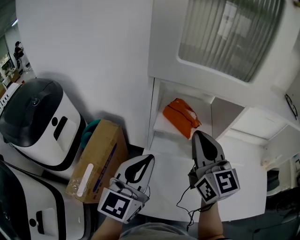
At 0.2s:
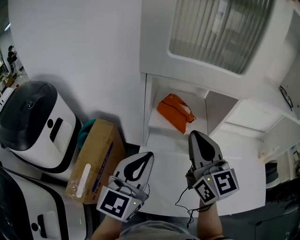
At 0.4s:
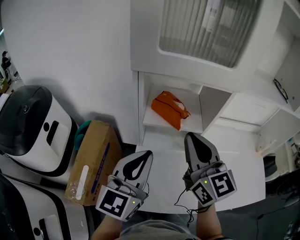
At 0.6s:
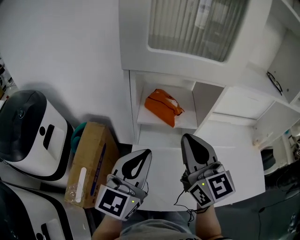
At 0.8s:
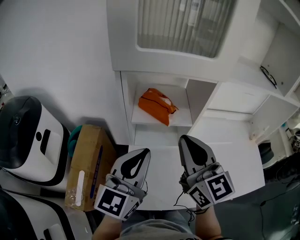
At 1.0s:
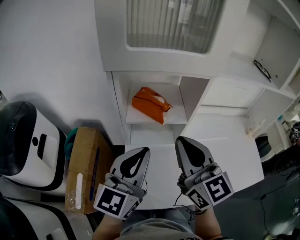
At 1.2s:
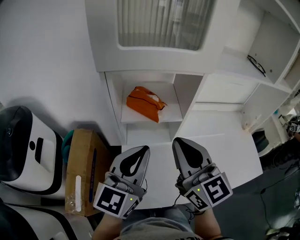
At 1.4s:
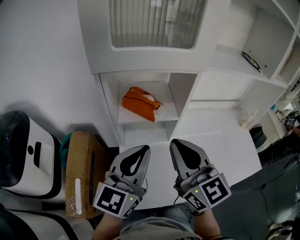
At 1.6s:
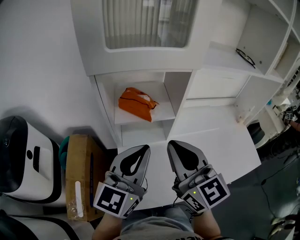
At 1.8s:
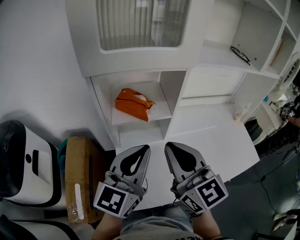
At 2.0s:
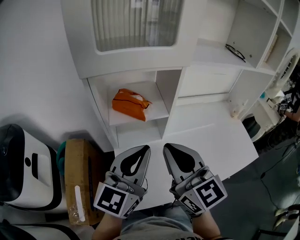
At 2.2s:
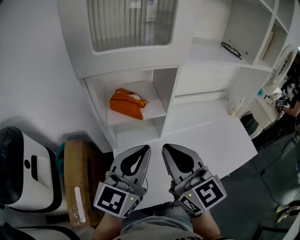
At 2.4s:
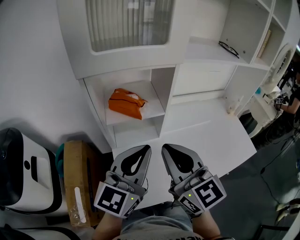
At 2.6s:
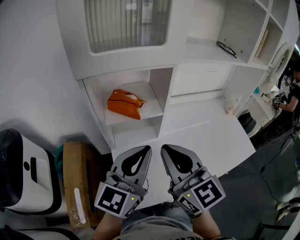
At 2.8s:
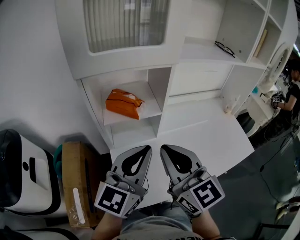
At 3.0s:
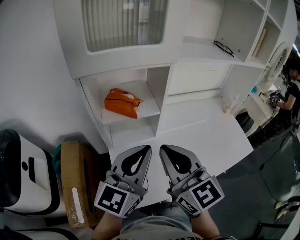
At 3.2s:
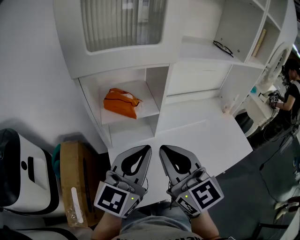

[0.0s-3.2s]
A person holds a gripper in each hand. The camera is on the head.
0.0s to 1.6s: The left gripper goes about 10 cm to the right, and swivels some 20 degrees. Meanwhile the right gripper shifts about 10 cm backward.
1.6s to 3.2s: The left gripper shifts by roughly 5 cm.

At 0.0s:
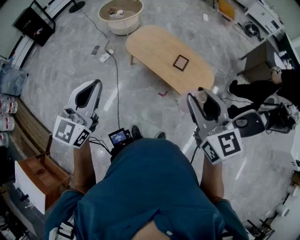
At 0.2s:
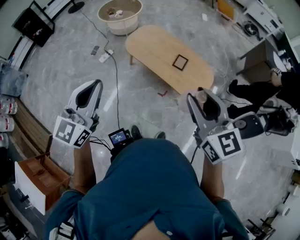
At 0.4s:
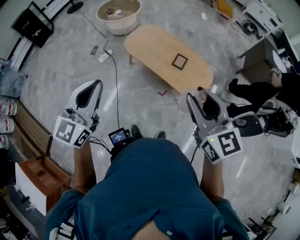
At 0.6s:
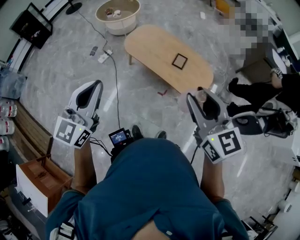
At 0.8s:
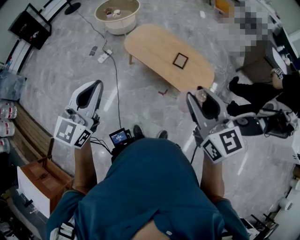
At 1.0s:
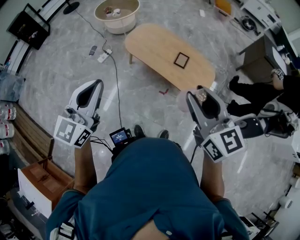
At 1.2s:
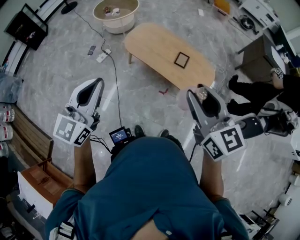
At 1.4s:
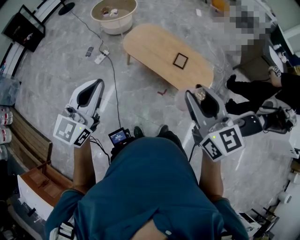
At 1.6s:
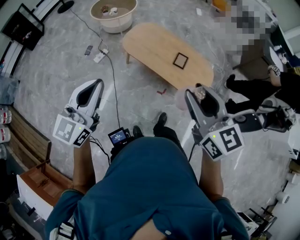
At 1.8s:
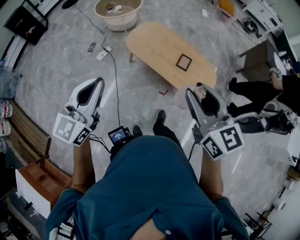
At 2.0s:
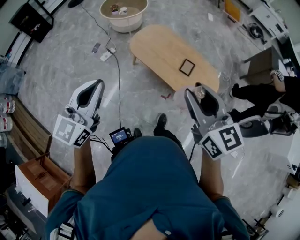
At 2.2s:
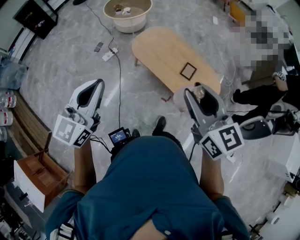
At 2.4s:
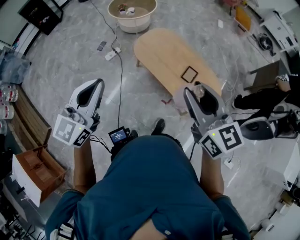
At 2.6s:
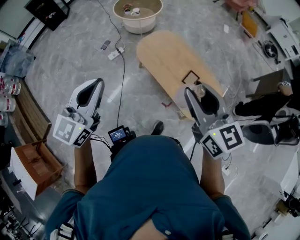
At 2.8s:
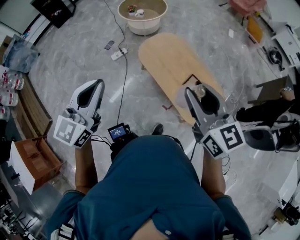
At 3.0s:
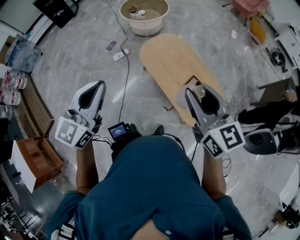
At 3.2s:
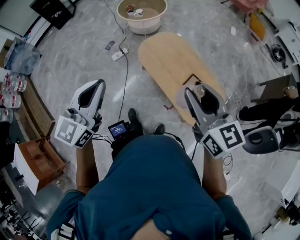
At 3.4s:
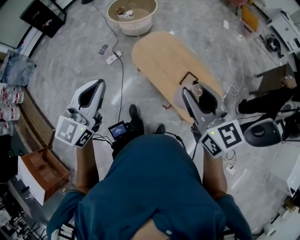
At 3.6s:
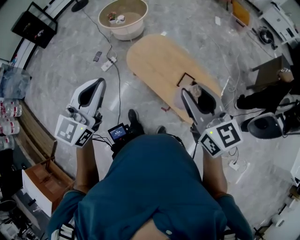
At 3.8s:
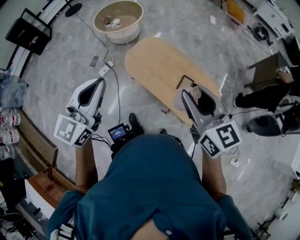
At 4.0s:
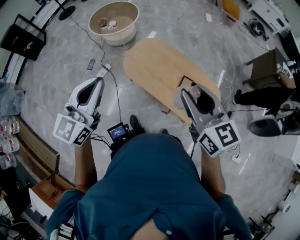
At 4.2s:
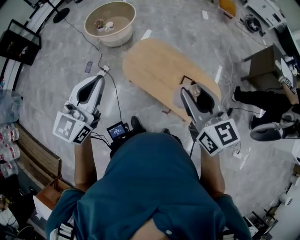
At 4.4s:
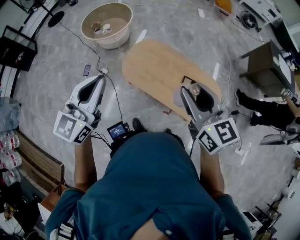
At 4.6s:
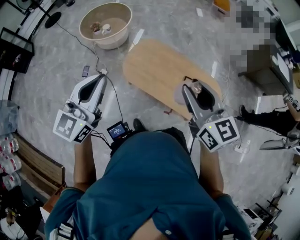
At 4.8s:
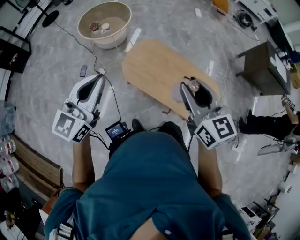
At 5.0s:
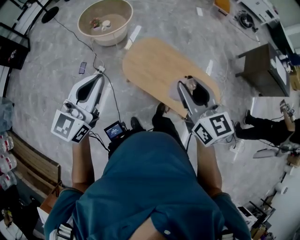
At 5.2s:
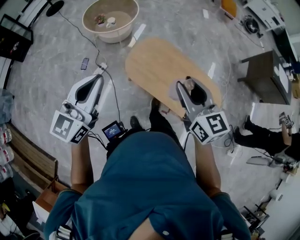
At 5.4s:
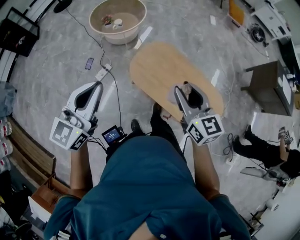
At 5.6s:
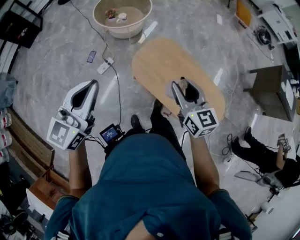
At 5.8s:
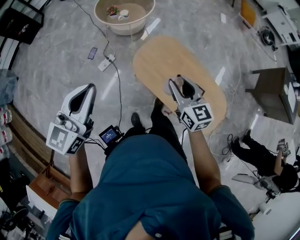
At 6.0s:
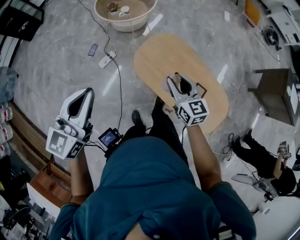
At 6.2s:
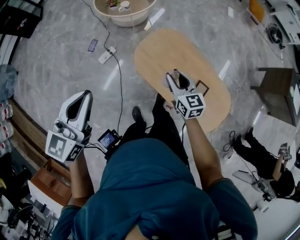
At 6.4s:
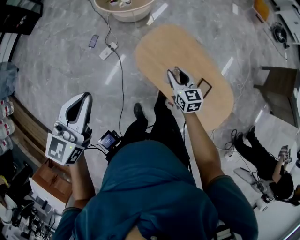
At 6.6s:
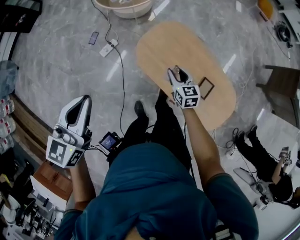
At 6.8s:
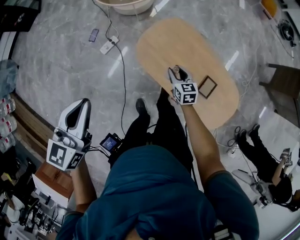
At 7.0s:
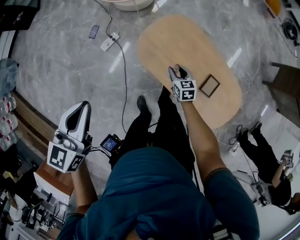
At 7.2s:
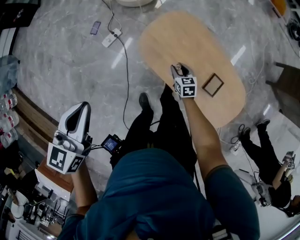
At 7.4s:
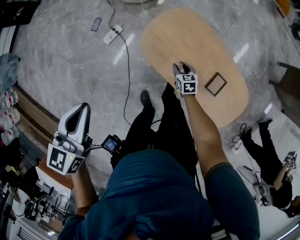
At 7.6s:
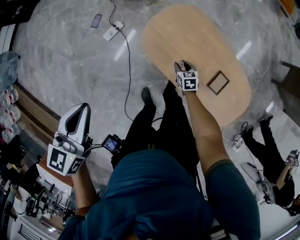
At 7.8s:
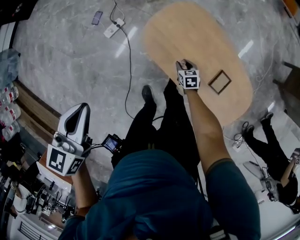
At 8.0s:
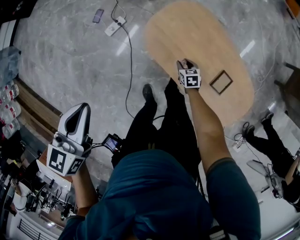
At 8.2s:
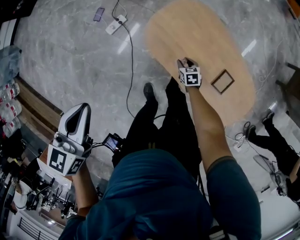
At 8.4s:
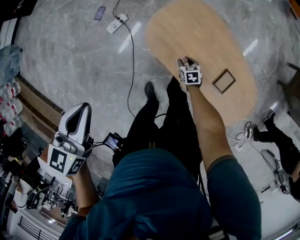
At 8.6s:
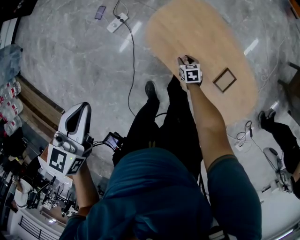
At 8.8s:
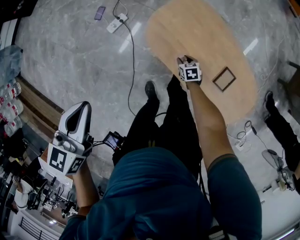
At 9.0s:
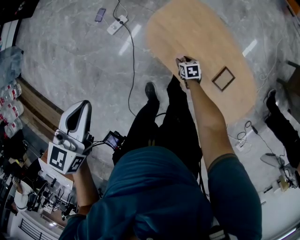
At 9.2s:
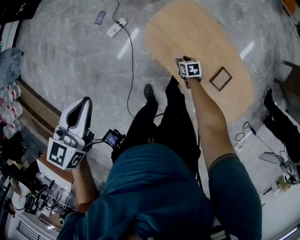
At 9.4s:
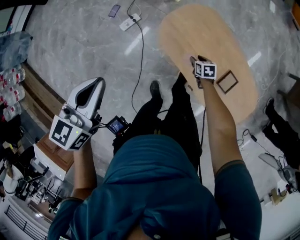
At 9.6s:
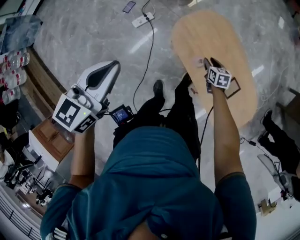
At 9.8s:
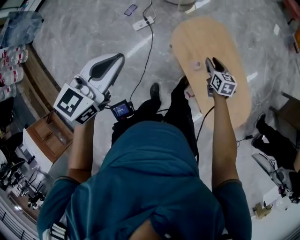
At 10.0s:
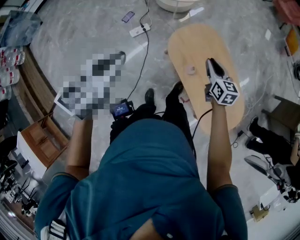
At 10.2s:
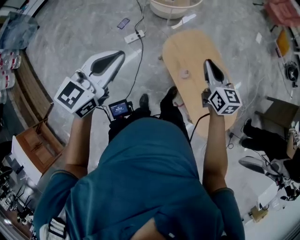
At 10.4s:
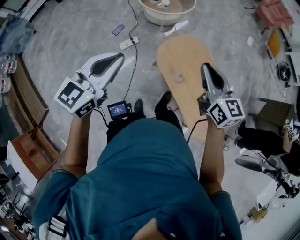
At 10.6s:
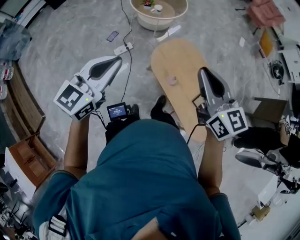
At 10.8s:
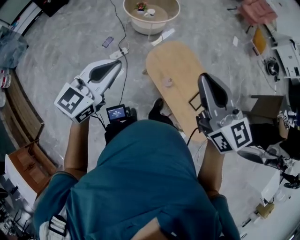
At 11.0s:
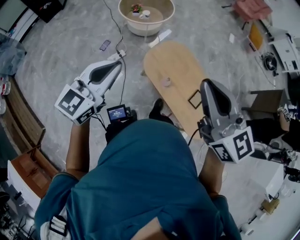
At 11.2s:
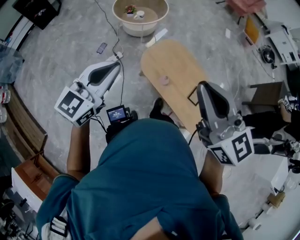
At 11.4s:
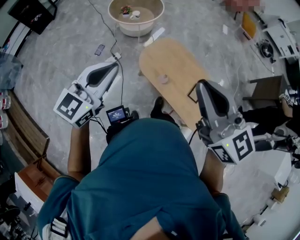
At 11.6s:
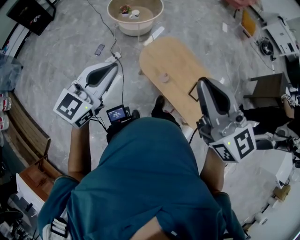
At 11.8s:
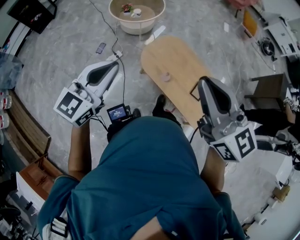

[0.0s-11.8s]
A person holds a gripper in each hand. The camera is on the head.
0.0s to 1.4s: The two grippers go about 5 cm to the left.
1.4s to 3.0s: The right gripper heads forward and to the right, covering approximately 25 cm. The left gripper heads forward and to the right, covering some 15 cm.
3.0s to 4.4s: The left gripper heads forward, covering about 25 cm, and changes its angle by some 20 degrees, while the right gripper heads forward and to the left, covering about 15 cm, and changes its angle by about 20 degrees.
4.4s to 6.0s: The right gripper heads downward, forward and to the left, covering some 30 cm, while the left gripper travels to the left and downward by about 10 cm.
6.0s to 7.4s: The left gripper shifts approximately 15 cm downward, and changes its angle by approximately 20 degrees. Meanwhile the right gripper travels downward by about 40 cm, and points its fingers approximately 30 degrees further downward.
7.4s to 8.8s: The right gripper heads downward, covering about 10 cm.
8.8s to 10.4s: The right gripper shifts approximately 60 cm upward, points its fingers about 50 degrees further upward, and closes its fingers. Meanwhile the left gripper moves upward and backward, roughly 15 cm, and turns by approximately 30 degrees.
10.4s to 11.8s: The left gripper changes place by approximately 5 cm; the right gripper goes approximately 20 cm upward and backward.

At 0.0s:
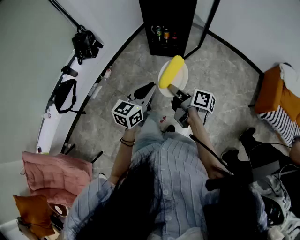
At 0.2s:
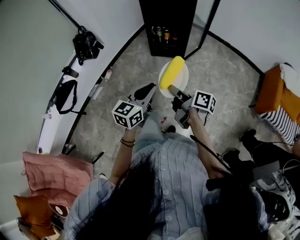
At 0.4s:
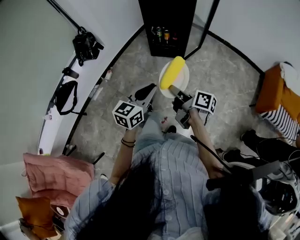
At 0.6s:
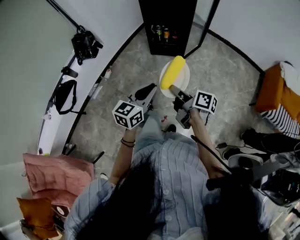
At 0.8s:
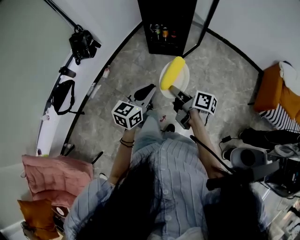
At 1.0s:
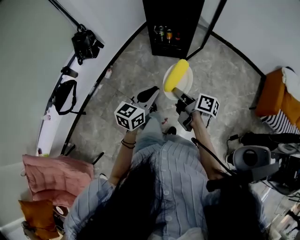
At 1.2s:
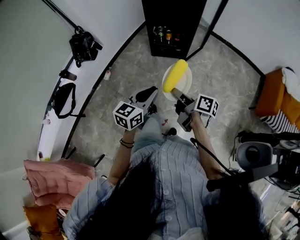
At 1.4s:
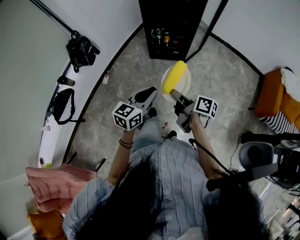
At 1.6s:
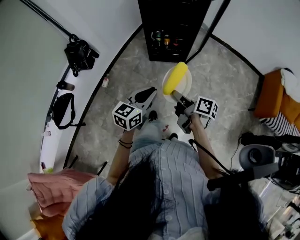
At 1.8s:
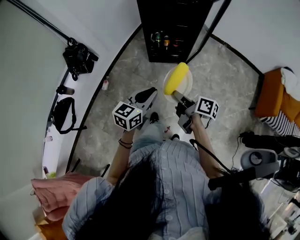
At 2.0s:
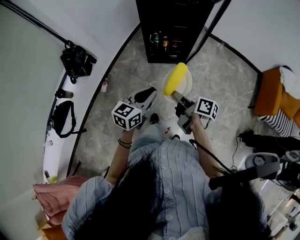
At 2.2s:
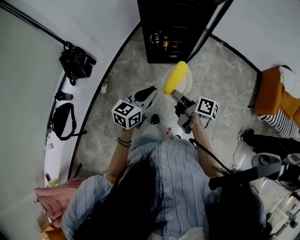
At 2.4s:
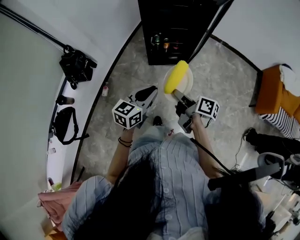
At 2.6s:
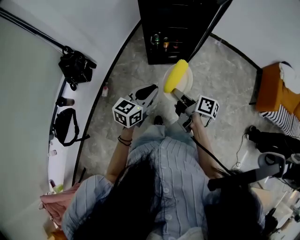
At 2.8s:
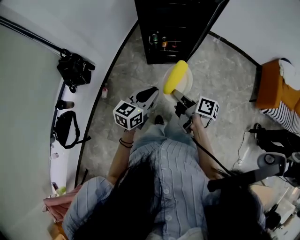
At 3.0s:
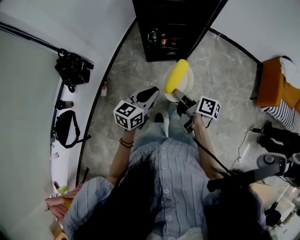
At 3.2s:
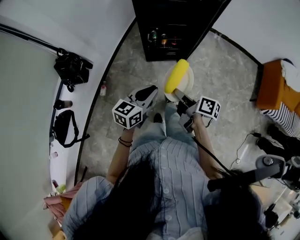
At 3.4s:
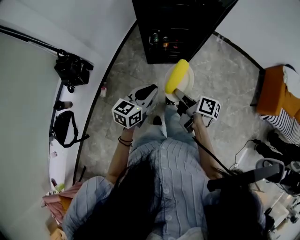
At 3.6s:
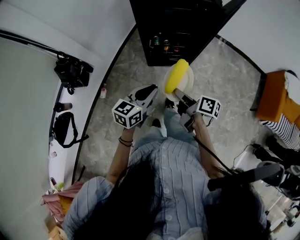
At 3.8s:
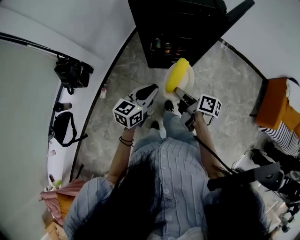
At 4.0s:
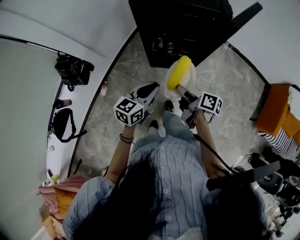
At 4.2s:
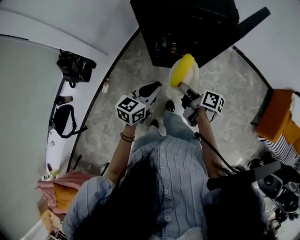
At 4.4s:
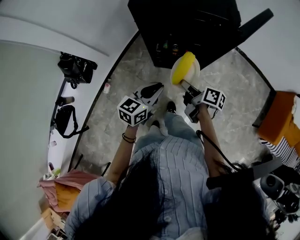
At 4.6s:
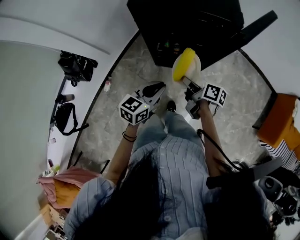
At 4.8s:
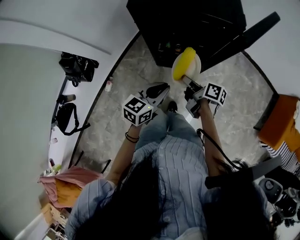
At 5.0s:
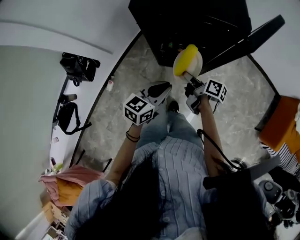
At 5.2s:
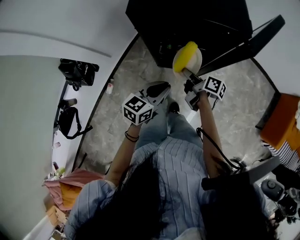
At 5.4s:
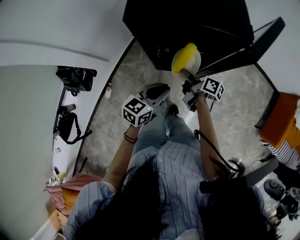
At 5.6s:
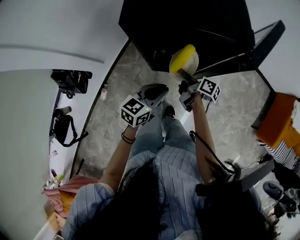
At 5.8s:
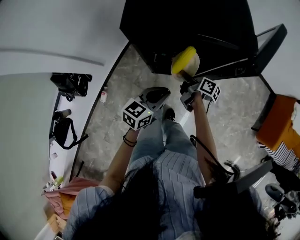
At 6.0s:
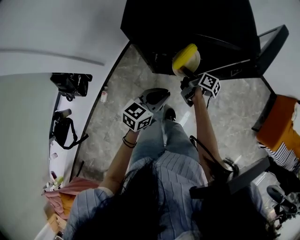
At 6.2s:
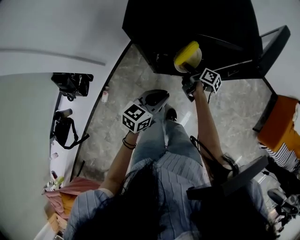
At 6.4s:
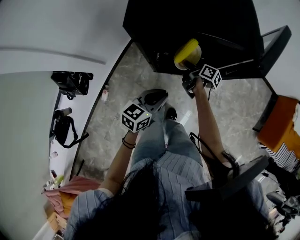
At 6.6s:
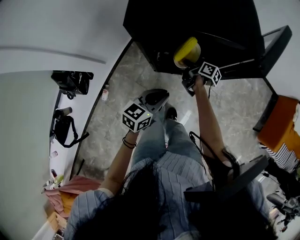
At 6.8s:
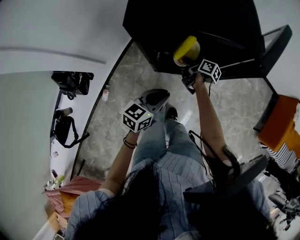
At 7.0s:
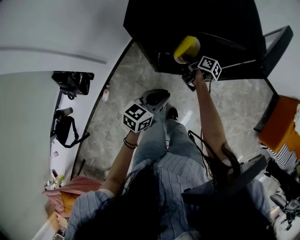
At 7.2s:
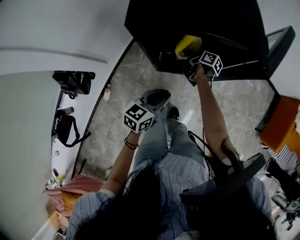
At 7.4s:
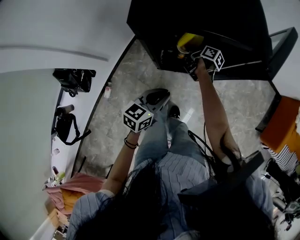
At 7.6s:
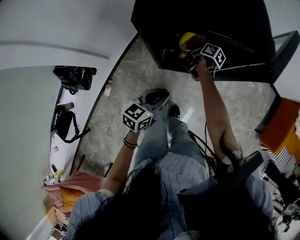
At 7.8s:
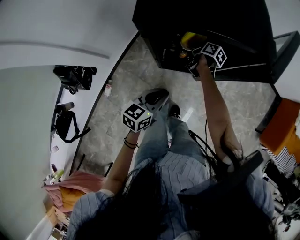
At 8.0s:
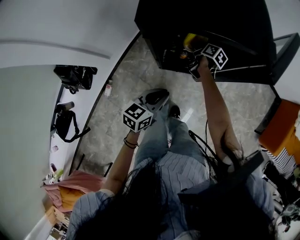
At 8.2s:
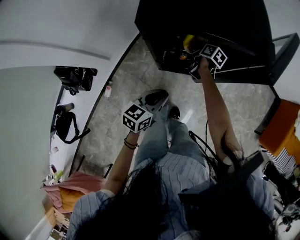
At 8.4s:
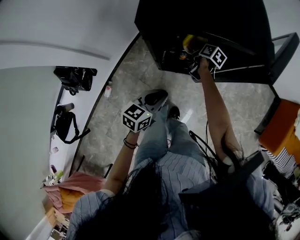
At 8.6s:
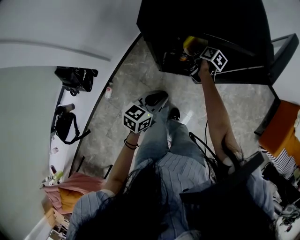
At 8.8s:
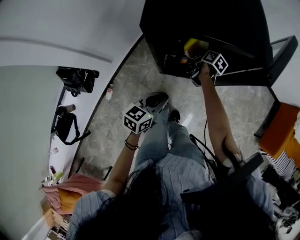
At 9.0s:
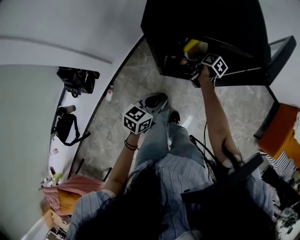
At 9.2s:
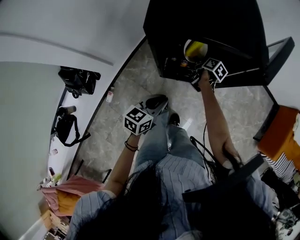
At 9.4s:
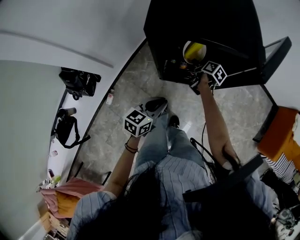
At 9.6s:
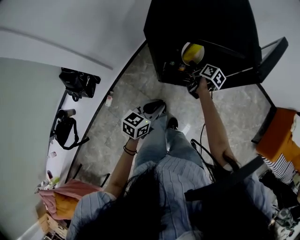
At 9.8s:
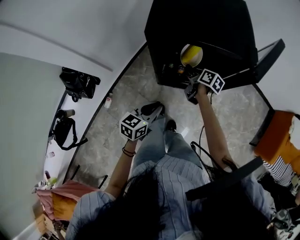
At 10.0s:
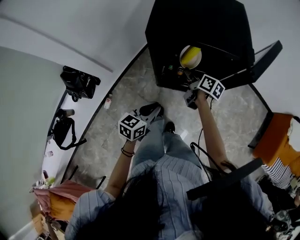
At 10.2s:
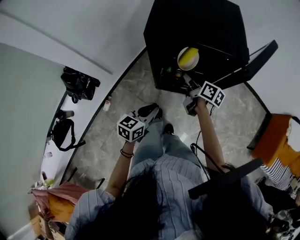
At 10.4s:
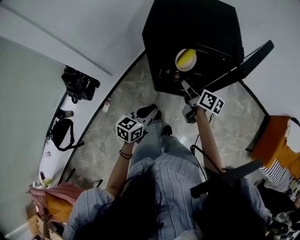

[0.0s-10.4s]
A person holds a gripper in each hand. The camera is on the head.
0.0s to 1.4s: Both grippers move forward, approximately 10 cm.
1.4s to 3.0s: The right gripper is displaced forward and to the left by approximately 15 cm, while the left gripper heads forward, covering some 15 cm.
3.0s to 4.4s: Both grippers travel together forward, some 25 cm.
4.4s to 6.0s: The left gripper travels forward by roughly 10 cm; the right gripper is displaced forward and downward by approximately 20 cm.
6.0s to 7.4s: The right gripper travels forward by roughly 10 cm.
7.4s to 9.0s: The right gripper rotates about 20 degrees, and opens.
9.0s to 10.4s: The right gripper heads upward and backward, covering roughly 25 cm, and swivels some 30 degrees; the left gripper shifts approximately 5 cm backward and upward.
